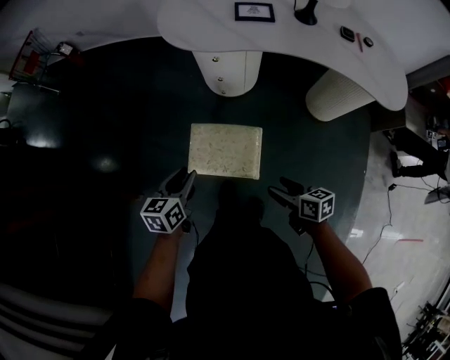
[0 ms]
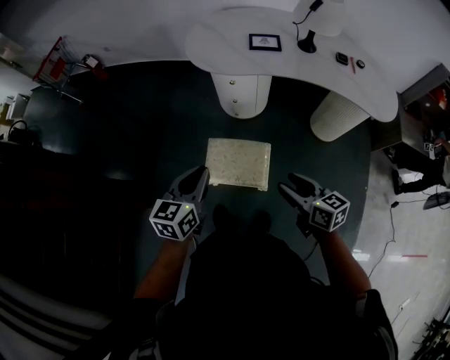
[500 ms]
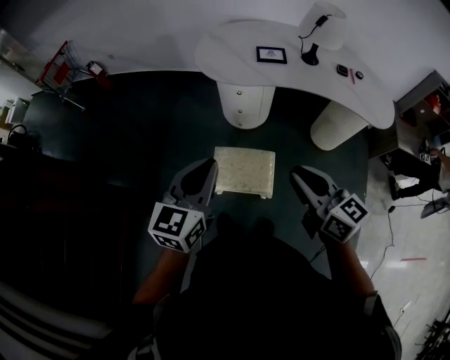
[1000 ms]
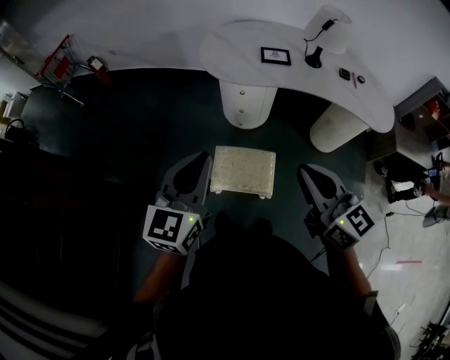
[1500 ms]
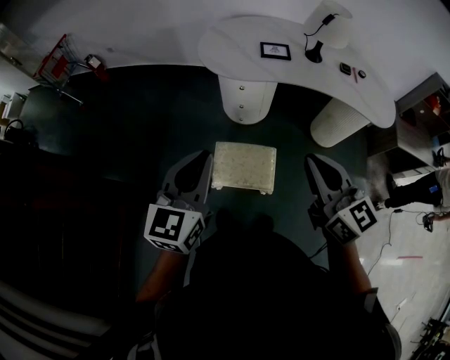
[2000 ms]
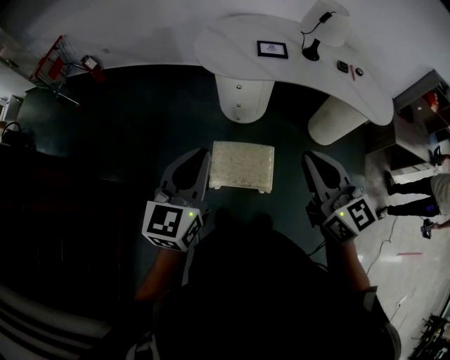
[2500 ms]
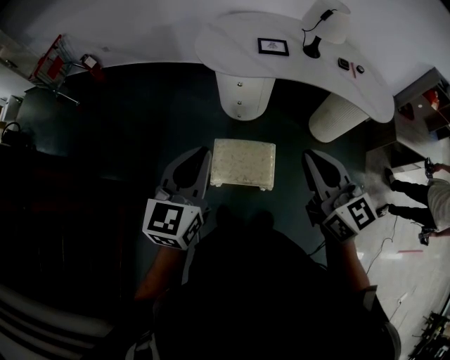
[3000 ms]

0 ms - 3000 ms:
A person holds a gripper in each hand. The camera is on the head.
0 ms - 1500 ms: Both grippers travel together upward, about 35 cm. The right gripper changes its angle by roughly 50 degrees, and closes its fingers. The left gripper changes its angle by roughly 40 degrees.
1500 ms - 3000 ms: The grippers move only a little.

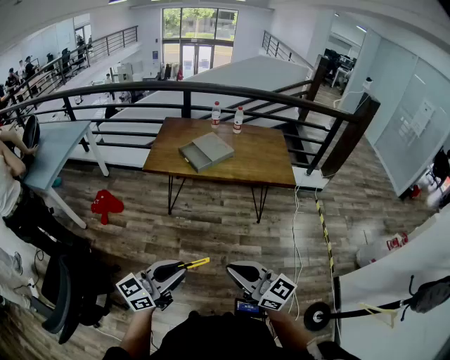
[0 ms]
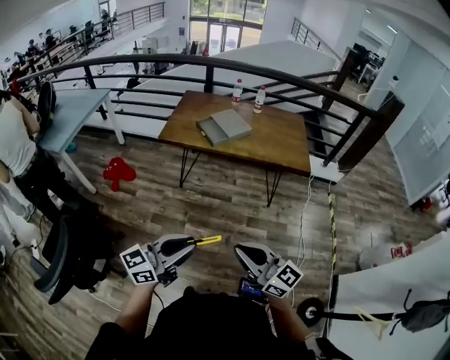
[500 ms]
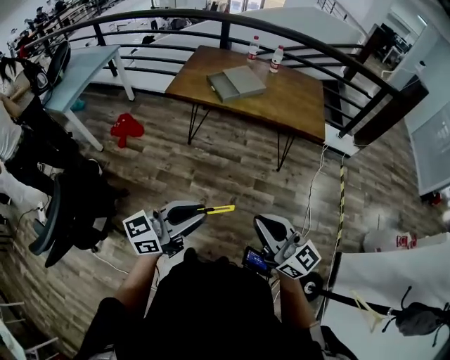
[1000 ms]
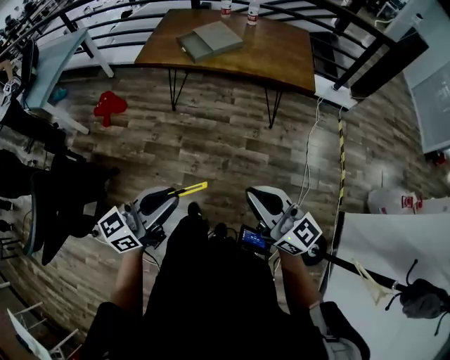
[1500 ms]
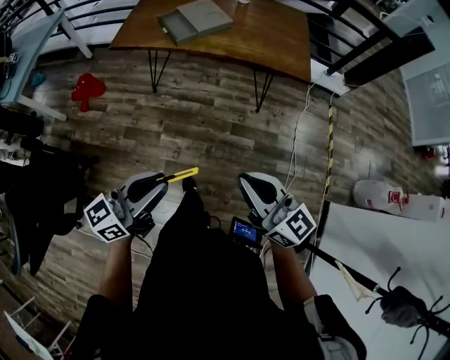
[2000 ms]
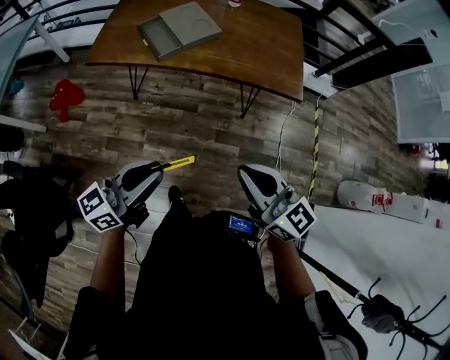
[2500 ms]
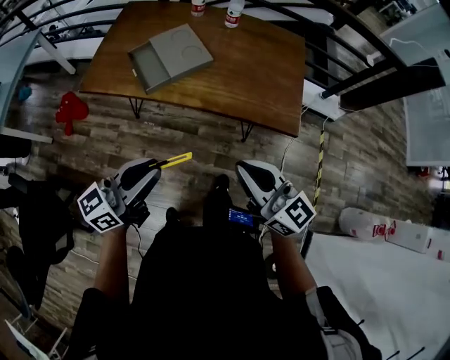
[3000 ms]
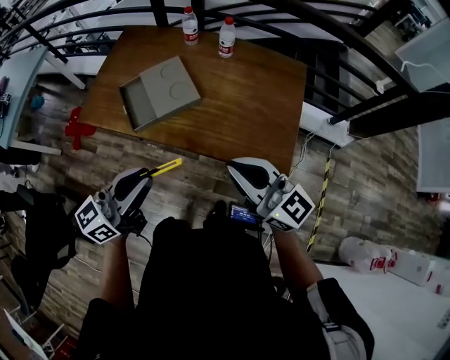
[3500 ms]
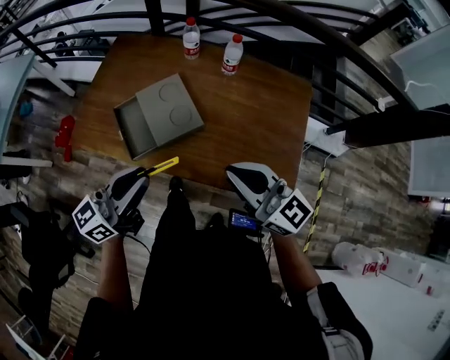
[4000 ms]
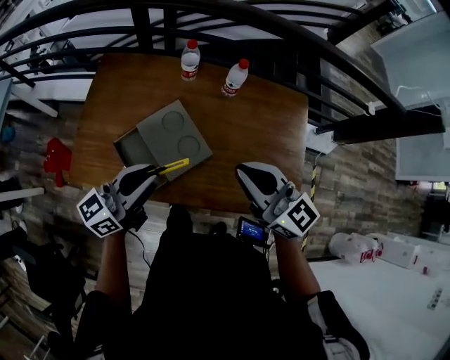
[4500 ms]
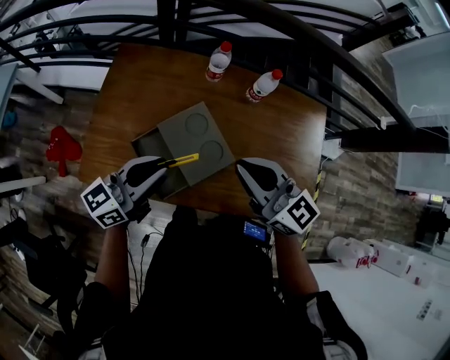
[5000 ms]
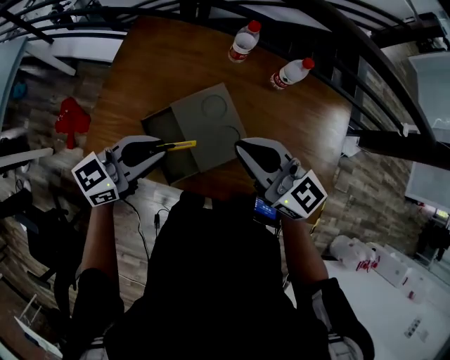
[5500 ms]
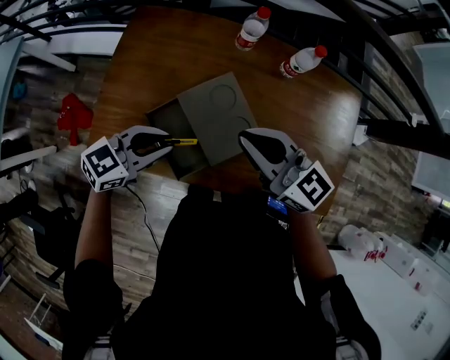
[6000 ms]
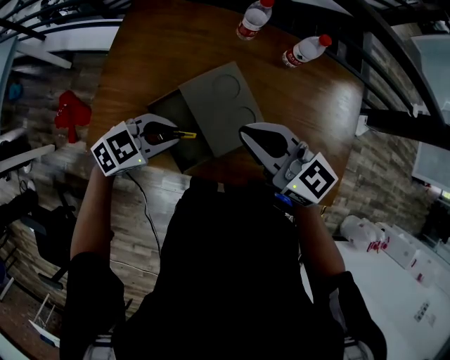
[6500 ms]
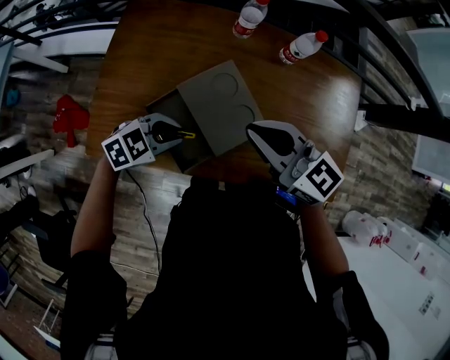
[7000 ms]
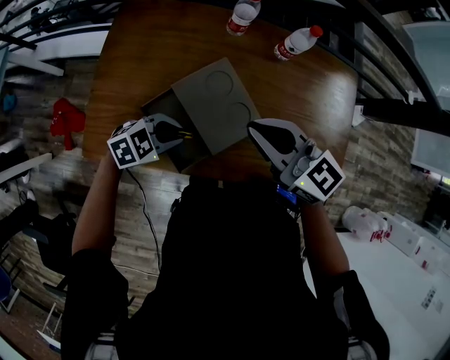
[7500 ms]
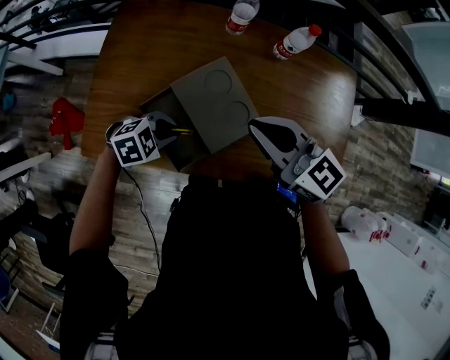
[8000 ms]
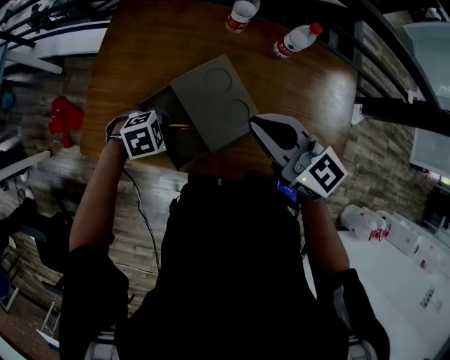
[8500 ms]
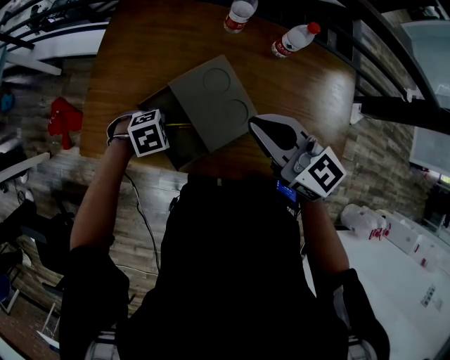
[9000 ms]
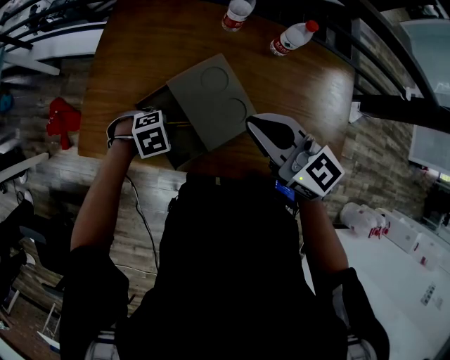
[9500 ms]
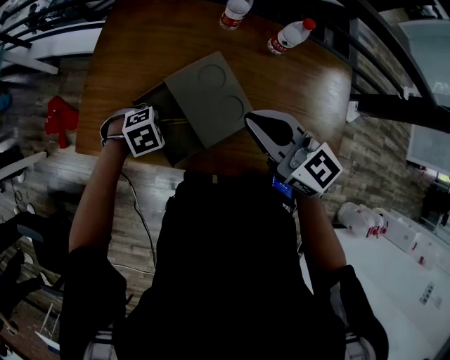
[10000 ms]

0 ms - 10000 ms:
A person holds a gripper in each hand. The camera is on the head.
0 ms - 2000 ms: The left gripper is displaced to the right, forward and downward by about 15 cm. The right gripper travels to the right and forward by roughly 20 cm.
2000 ms - 4000 ms: Both grippers are carried forward, roughly 60 cm.
4000 ms - 6000 ms: The left gripper is displaced forward, downward and to the left by roughly 25 cm, and swivels some 40 degrees, while the right gripper goes roughly 25 cm to the left and forward.
6000 ms - 8000 ms: The left gripper goes about 15 cm downward, and points its fingers approximately 30 degrees further downward.

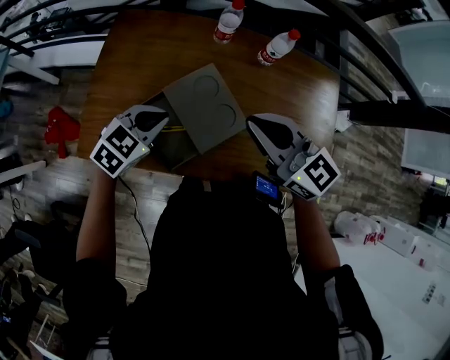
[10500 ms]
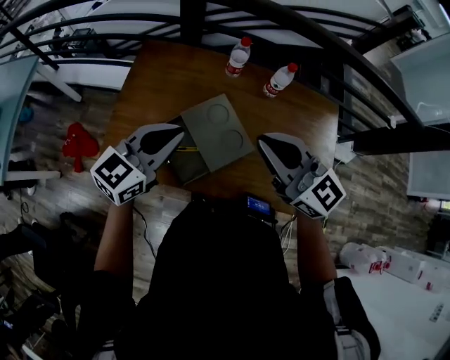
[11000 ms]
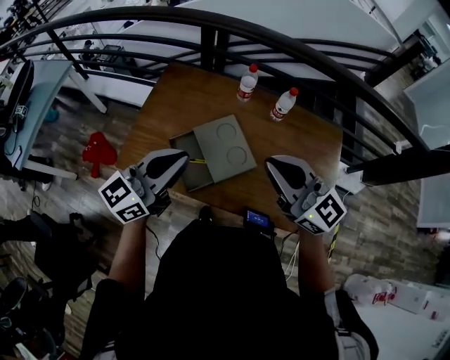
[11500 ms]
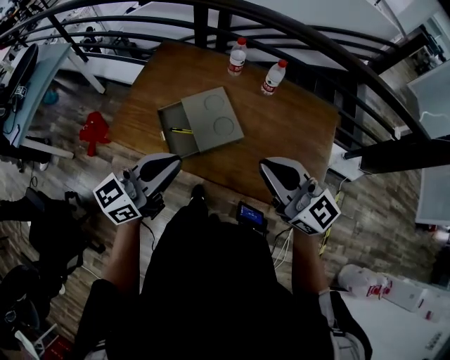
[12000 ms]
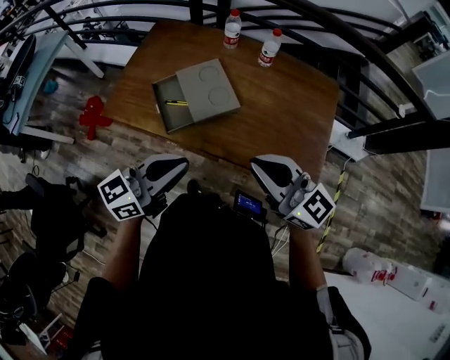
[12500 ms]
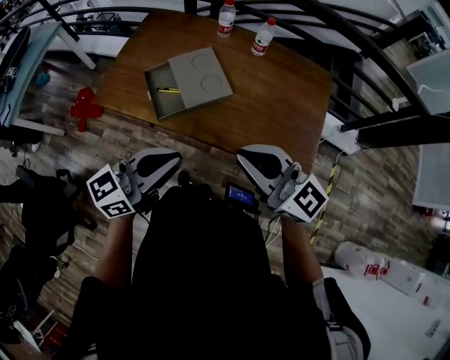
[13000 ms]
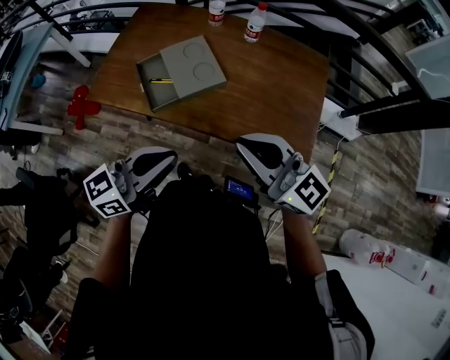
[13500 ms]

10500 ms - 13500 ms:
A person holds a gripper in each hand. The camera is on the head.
10500 ms - 12000 ms: The right gripper goes about 20 cm backward, to the right and upward. Meanwhile the left gripper moves backward and upward, about 30 cm, and points its fingers roughly 40 degrees further upward.
12000 ms - 13500 ms: The right gripper heads backward, covering some 10 cm, while the left gripper heads backward and to the right, covering some 15 cm.

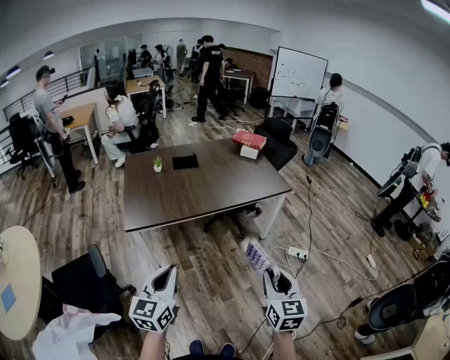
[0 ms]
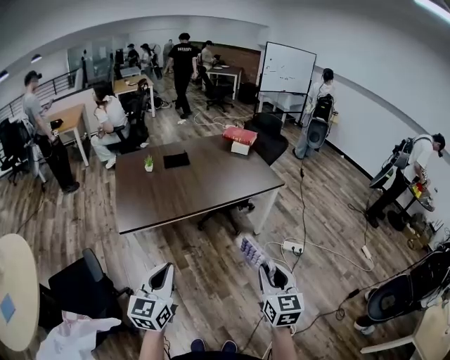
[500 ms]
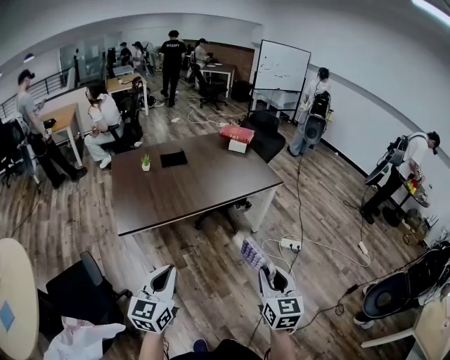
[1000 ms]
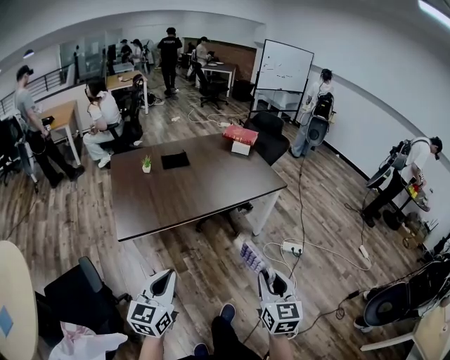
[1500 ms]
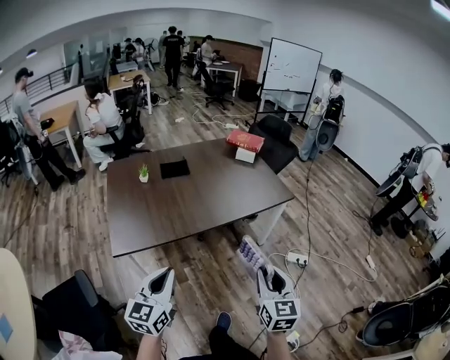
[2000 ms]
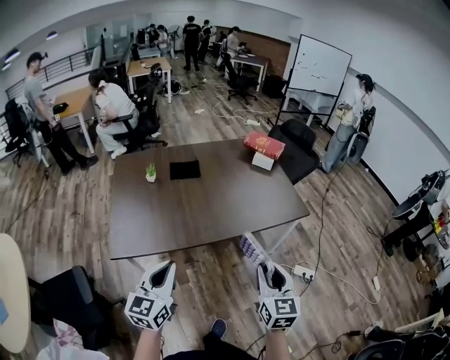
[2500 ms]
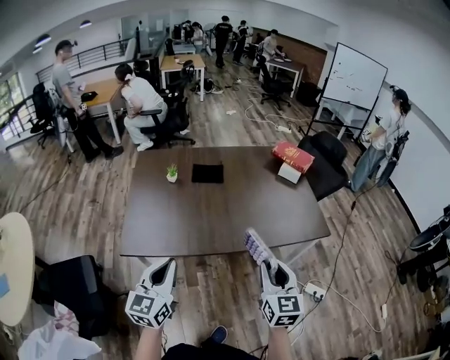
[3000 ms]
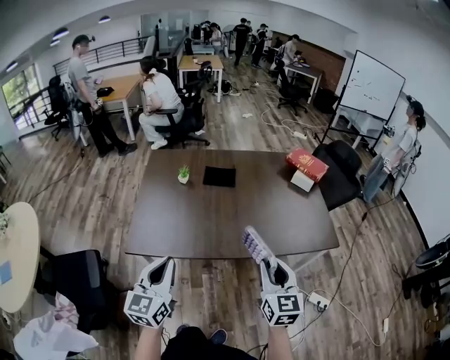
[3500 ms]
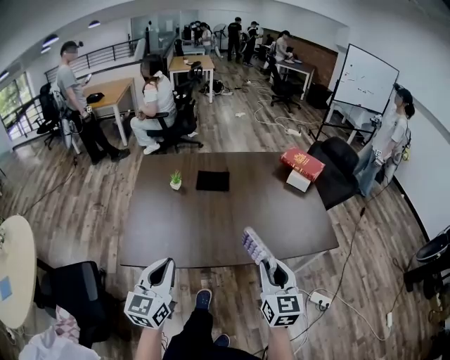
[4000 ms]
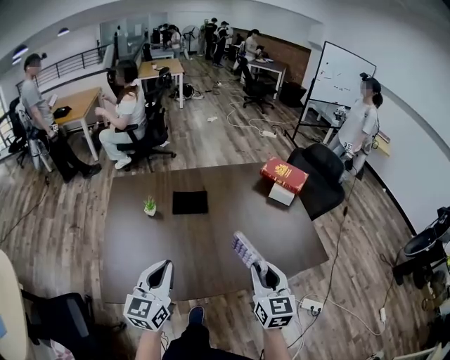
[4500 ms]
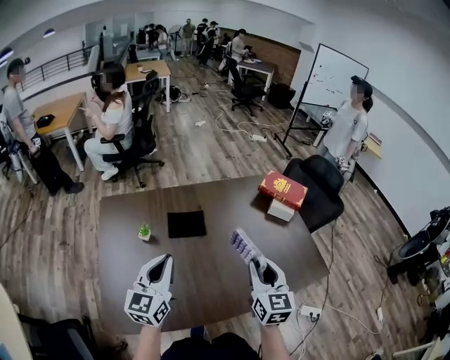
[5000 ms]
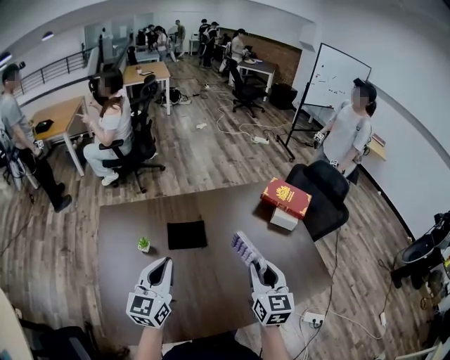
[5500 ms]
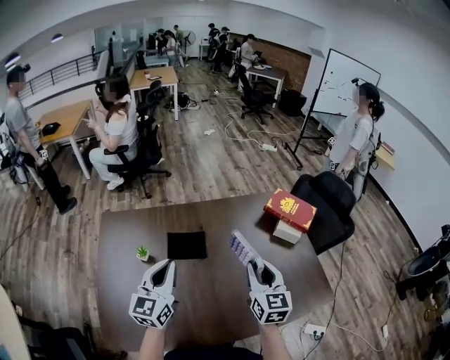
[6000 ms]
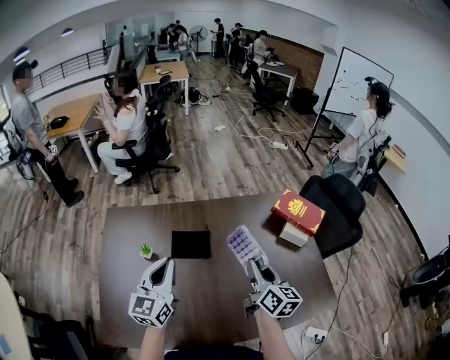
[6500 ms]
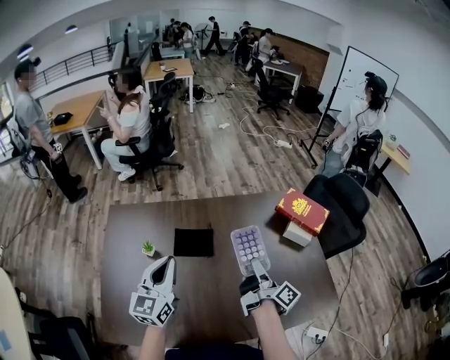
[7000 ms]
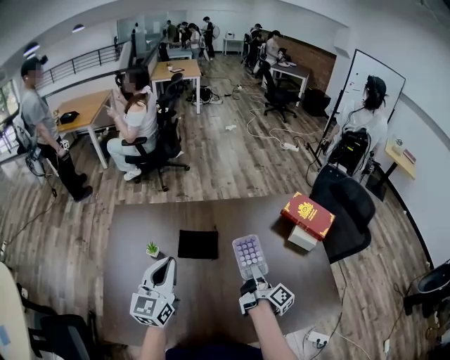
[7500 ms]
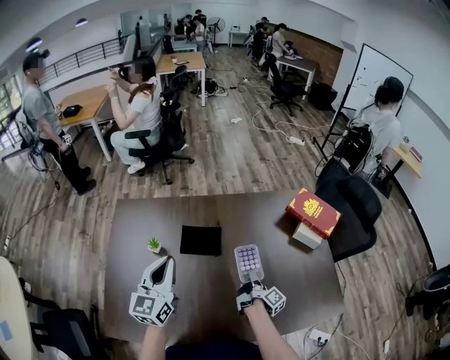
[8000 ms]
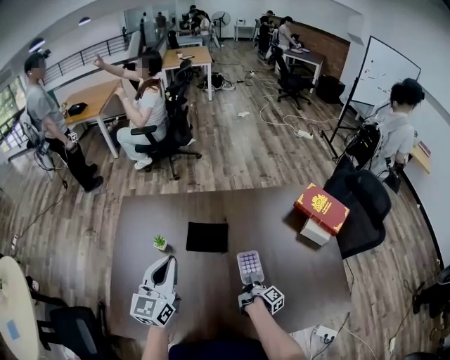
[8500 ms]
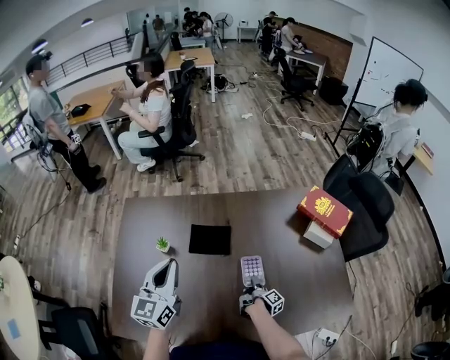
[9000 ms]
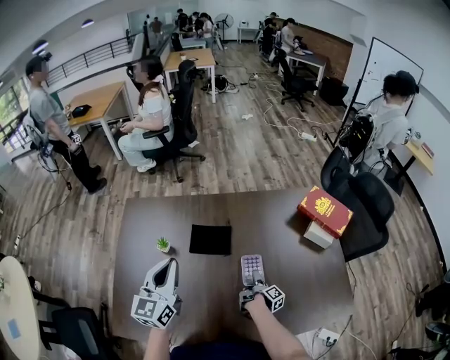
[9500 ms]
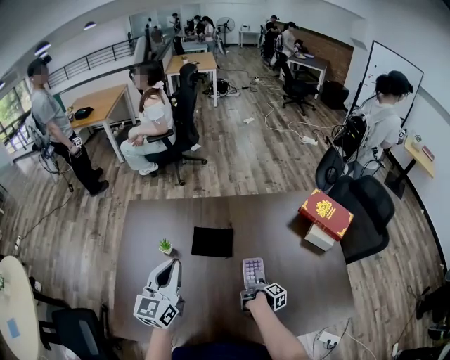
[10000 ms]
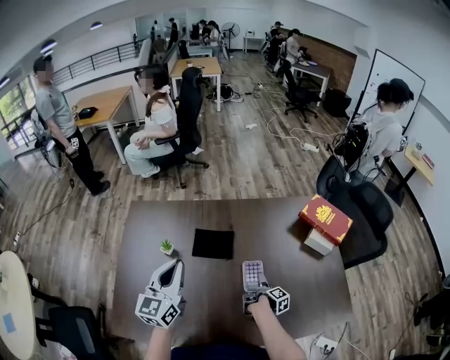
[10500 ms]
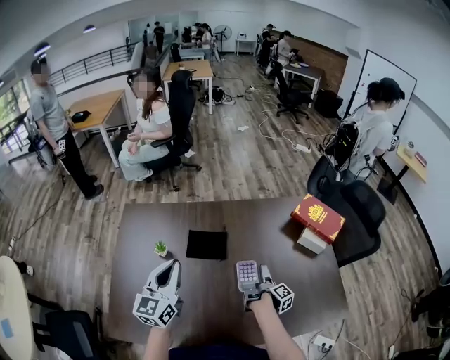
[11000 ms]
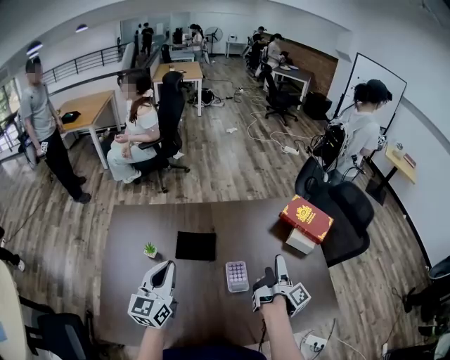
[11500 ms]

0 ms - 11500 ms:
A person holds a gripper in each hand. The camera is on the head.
0 ms - 2000 ms: Both grippers move forward, about 20 cm.
2000 ms - 4000 ms: The grippers both shift forward by roughly 30 cm. The right gripper swivels approximately 20 degrees, while the left gripper changes its angle by about 20 degrees.
4000 ms - 6000 ms: Both grippers are carried forward, roughly 40 cm.
6000 ms - 7500 ms: The right gripper heads downward and forward, covering about 15 cm, and rolls clockwise, seen from behind, by about 80 degrees.
7500 ms - 9500 ms: The right gripper travels downward by roughly 25 cm, and changes its angle by approximately 30 degrees.
9500 ms - 11500 ms: The right gripper travels upward by some 30 cm, changes its angle by roughly 30 degrees, and opens.
